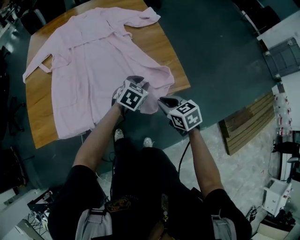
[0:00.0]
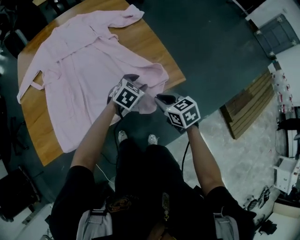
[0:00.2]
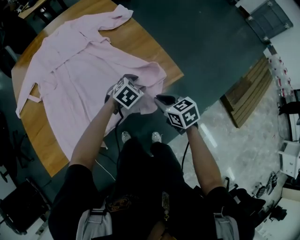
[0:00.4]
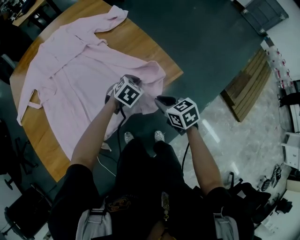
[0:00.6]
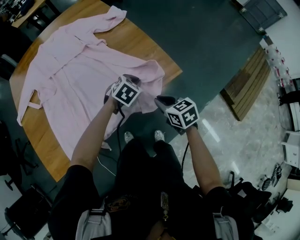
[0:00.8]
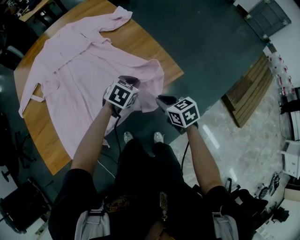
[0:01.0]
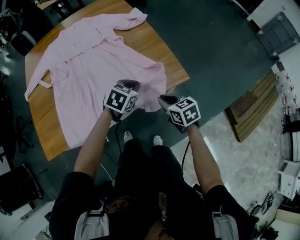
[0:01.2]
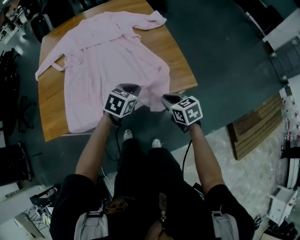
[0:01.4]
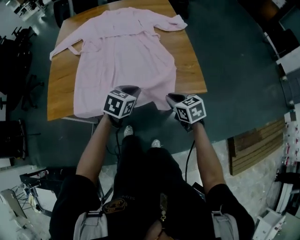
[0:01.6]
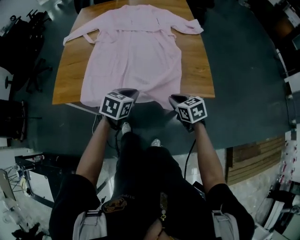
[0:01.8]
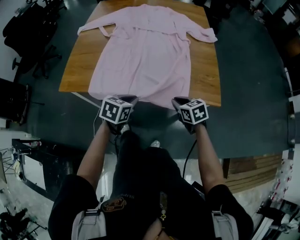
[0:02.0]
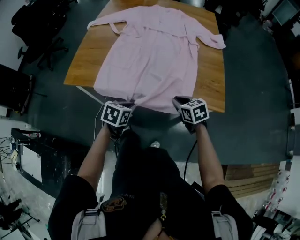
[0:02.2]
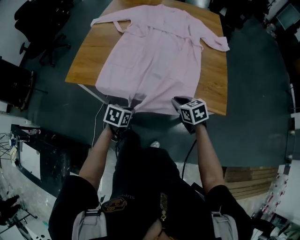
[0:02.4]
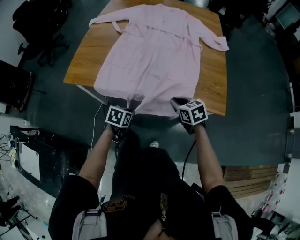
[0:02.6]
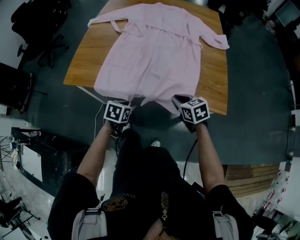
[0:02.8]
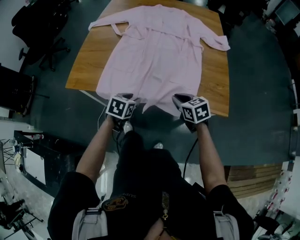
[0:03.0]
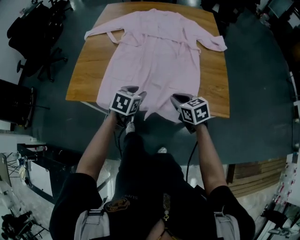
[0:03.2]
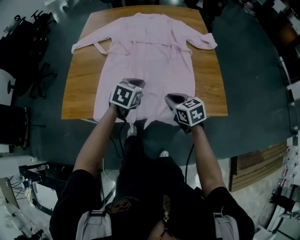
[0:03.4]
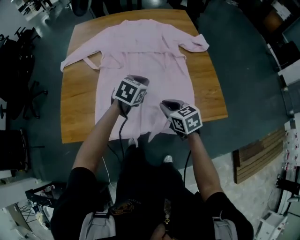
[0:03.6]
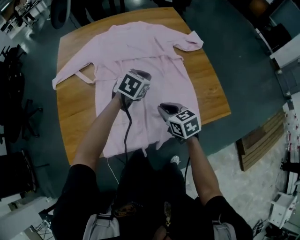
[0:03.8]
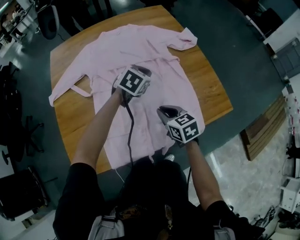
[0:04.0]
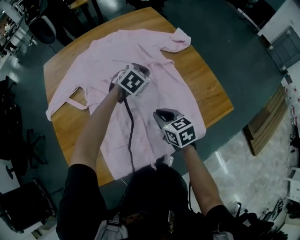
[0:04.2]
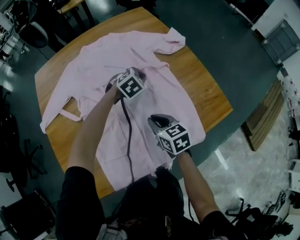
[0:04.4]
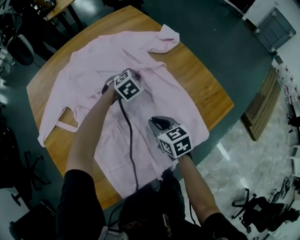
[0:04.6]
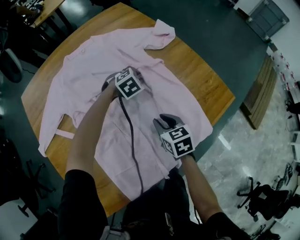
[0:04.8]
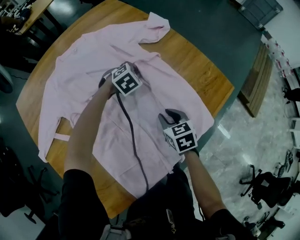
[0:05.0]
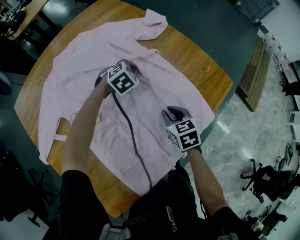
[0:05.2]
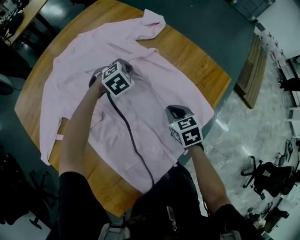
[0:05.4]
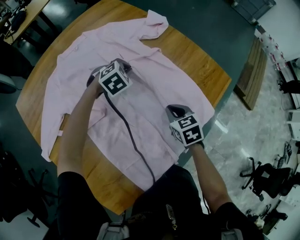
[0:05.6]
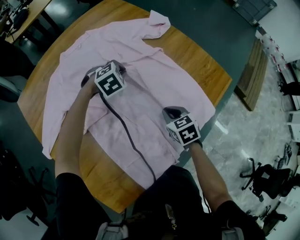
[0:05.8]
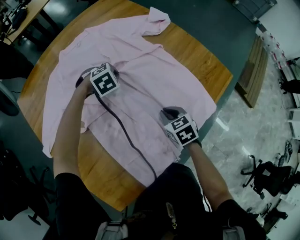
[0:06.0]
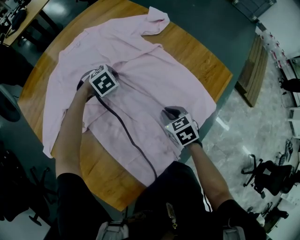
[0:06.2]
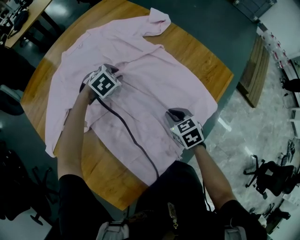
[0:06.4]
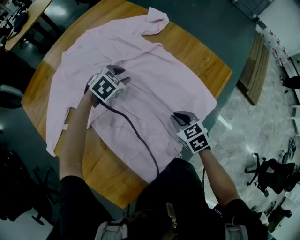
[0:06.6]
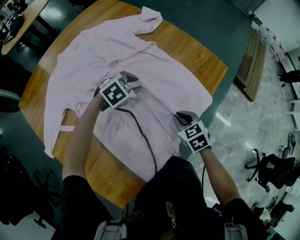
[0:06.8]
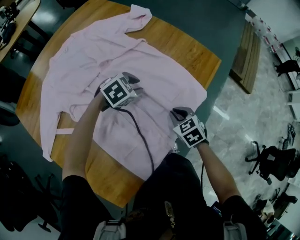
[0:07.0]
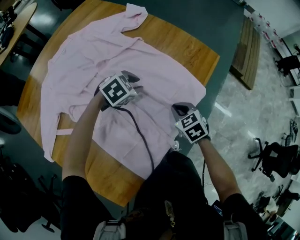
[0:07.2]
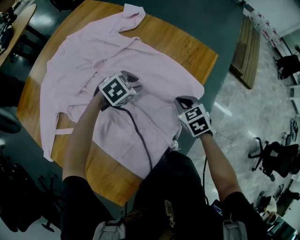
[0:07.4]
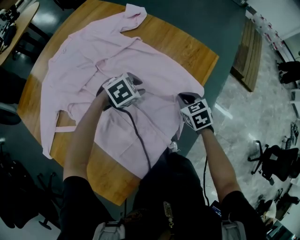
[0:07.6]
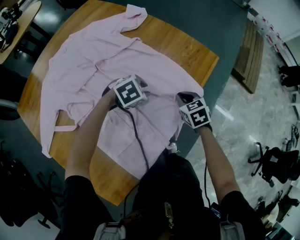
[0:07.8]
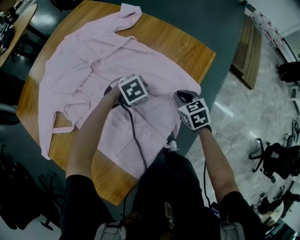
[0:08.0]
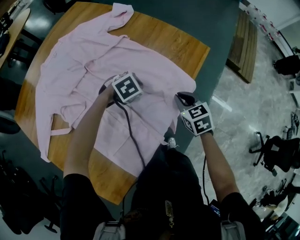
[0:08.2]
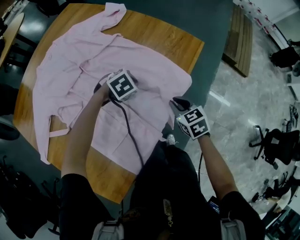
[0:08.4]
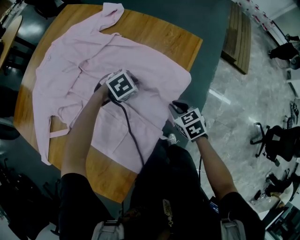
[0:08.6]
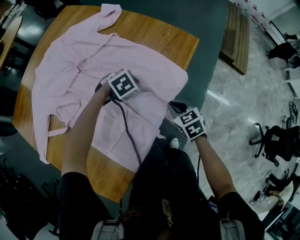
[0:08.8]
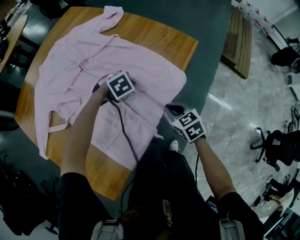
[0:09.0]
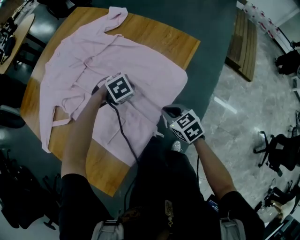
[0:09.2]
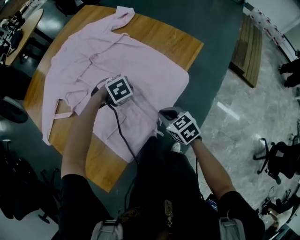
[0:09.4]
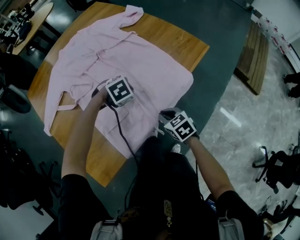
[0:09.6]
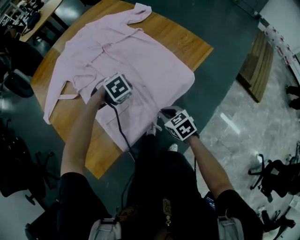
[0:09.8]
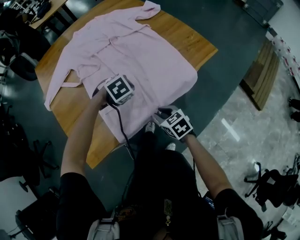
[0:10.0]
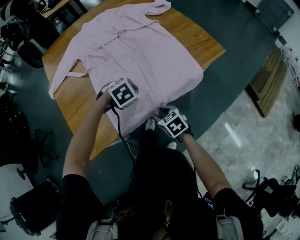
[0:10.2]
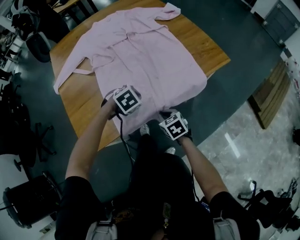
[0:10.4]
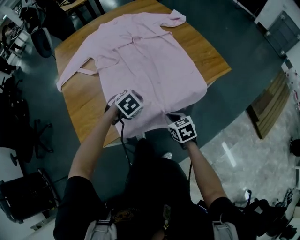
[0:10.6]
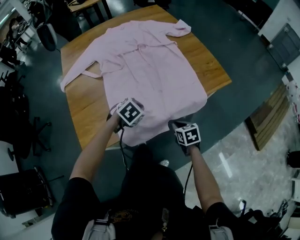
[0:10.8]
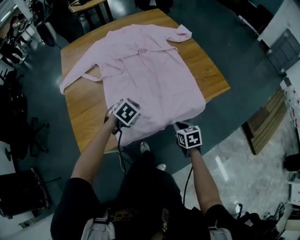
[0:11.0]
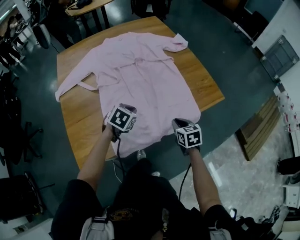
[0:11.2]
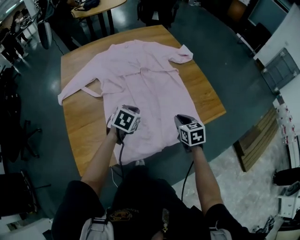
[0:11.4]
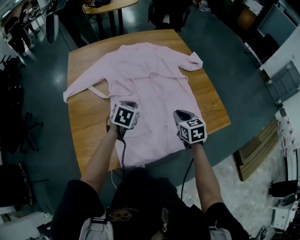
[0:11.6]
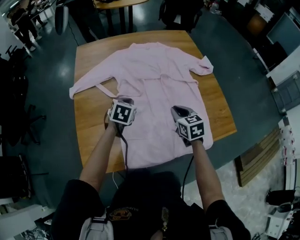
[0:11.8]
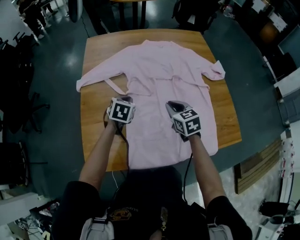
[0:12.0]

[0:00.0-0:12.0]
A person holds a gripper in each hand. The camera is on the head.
0:00.0 to 0:01.6: The left gripper changes place by about 15 cm, and opens, then closes again.
0:01.6 to 0:03.0: The right gripper goes approximately 10 cm to the left. The left gripper goes roughly 20 cm to the left and downward, turns by roughly 20 degrees, and opens up.
0:03.0 to 0:04.4: The right gripper changes place by approximately 20 cm, and turns by about 40 degrees, while the left gripper goes upward and returns, some 10 cm each way, twists about 70 degrees clockwise, seen from behind, and closes.
0:04.4 to 0:06.0: The right gripper heads downward, covering some 5 cm, and swivels roughly 20 degrees, while the left gripper goes about 10 cm to the left, and swivels approximately 30 degrees.
0:06.0 to 0:07.6: The right gripper moves about 15 cm. The left gripper shifts by about 20 cm, turns by roughly 20 degrees, and opens its fingers.
0:07.6 to 0:09.0: The right gripper is displaced backward by some 10 cm; the left gripper travels to the right by some 5 cm, and closes its fingers.
0:09.0 to 0:10.4: The left gripper changes place by approximately 20 cm, and turns by some 30 degrees, while the right gripper shifts by about 15 cm, rotates roughly 30 degrees, and opens, then closes once more.
0:10.4 to 0:12.0: The right gripper ends up approximately 35 cm from where it was, and swivels roughly 20 degrees, while the left gripper ends up roughly 30 cm from where it was, and rolls counterclockwise, seen from behind, by about 50 degrees.

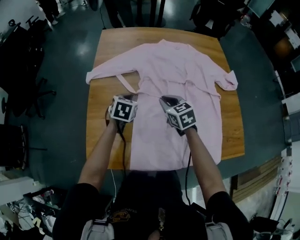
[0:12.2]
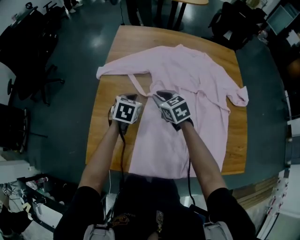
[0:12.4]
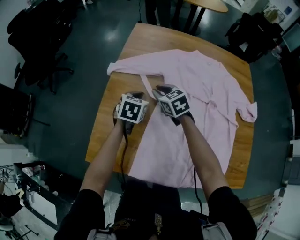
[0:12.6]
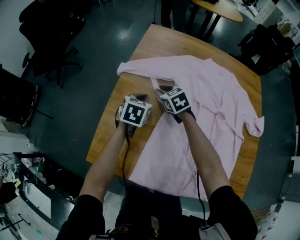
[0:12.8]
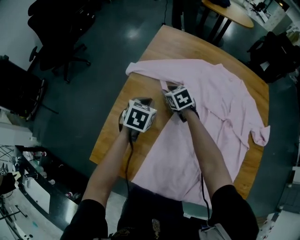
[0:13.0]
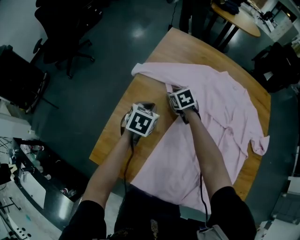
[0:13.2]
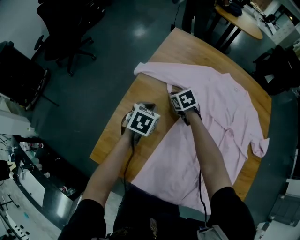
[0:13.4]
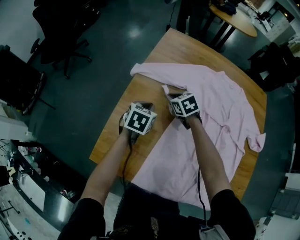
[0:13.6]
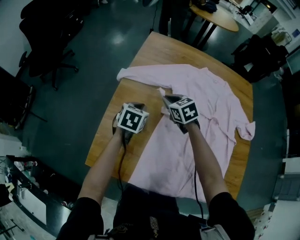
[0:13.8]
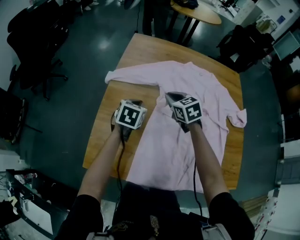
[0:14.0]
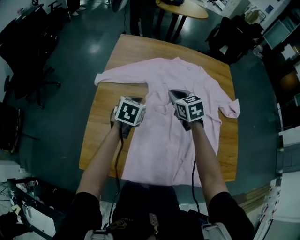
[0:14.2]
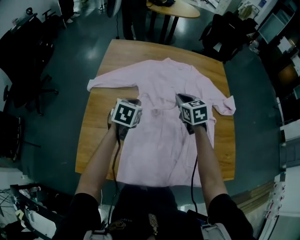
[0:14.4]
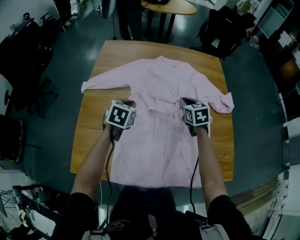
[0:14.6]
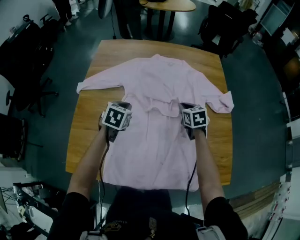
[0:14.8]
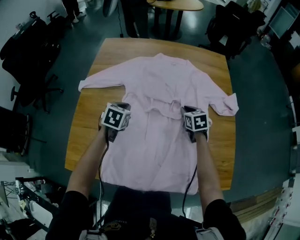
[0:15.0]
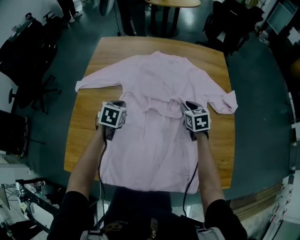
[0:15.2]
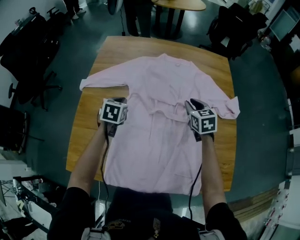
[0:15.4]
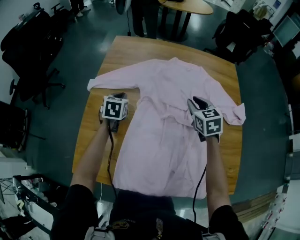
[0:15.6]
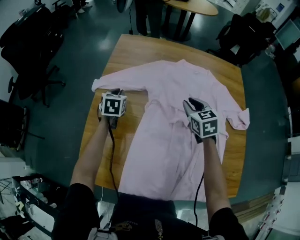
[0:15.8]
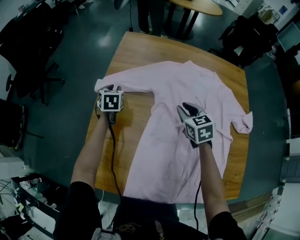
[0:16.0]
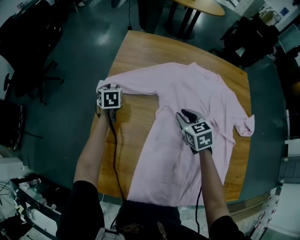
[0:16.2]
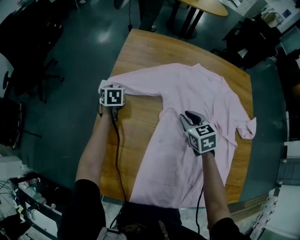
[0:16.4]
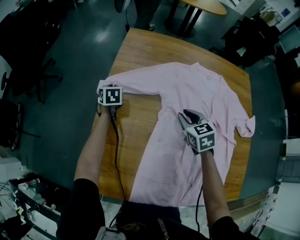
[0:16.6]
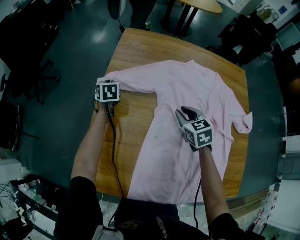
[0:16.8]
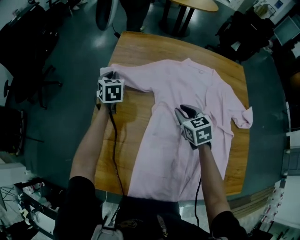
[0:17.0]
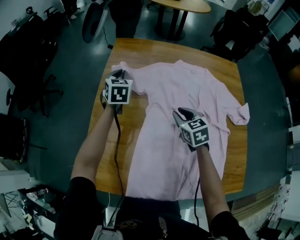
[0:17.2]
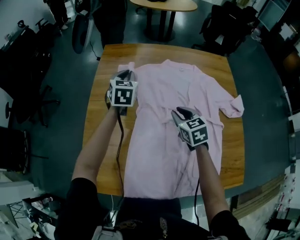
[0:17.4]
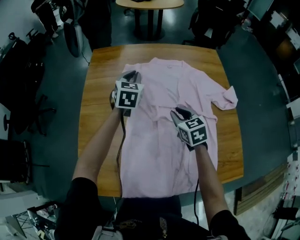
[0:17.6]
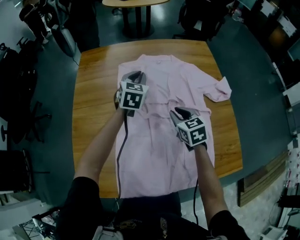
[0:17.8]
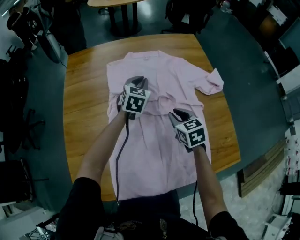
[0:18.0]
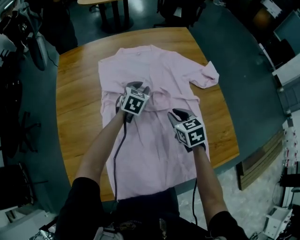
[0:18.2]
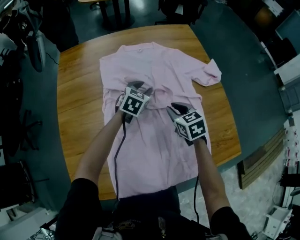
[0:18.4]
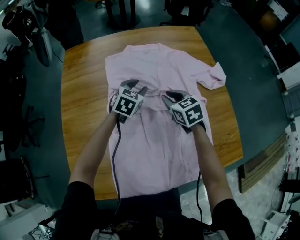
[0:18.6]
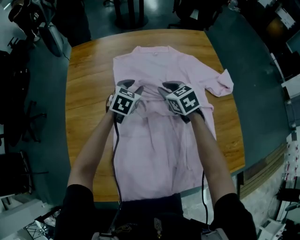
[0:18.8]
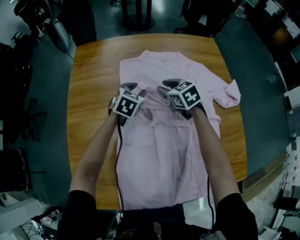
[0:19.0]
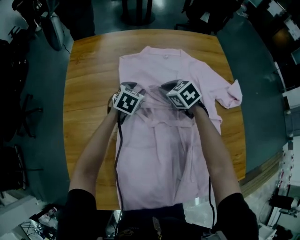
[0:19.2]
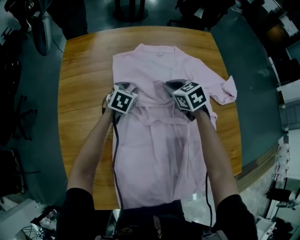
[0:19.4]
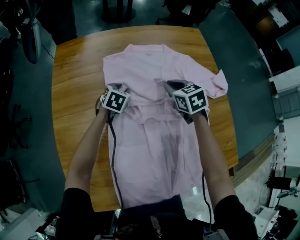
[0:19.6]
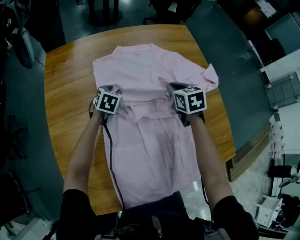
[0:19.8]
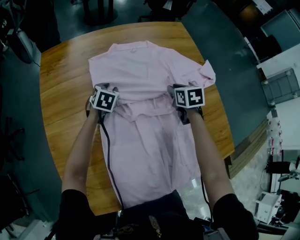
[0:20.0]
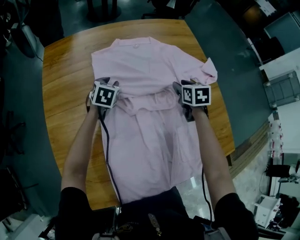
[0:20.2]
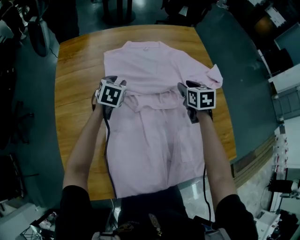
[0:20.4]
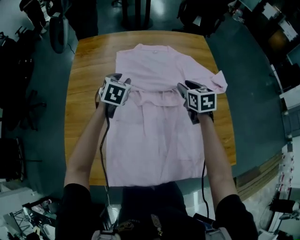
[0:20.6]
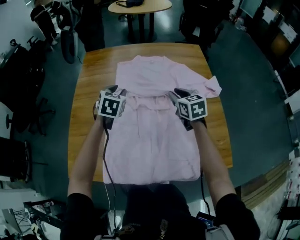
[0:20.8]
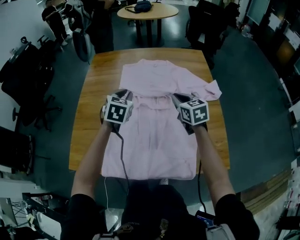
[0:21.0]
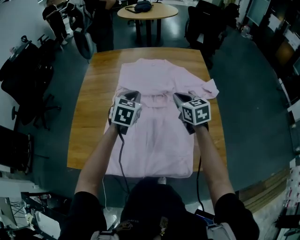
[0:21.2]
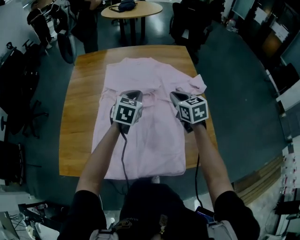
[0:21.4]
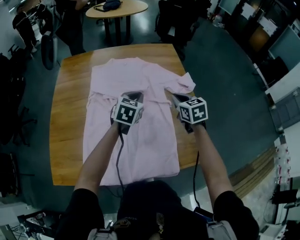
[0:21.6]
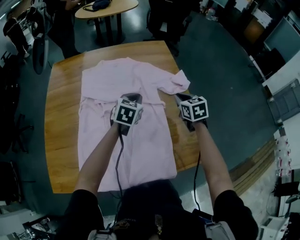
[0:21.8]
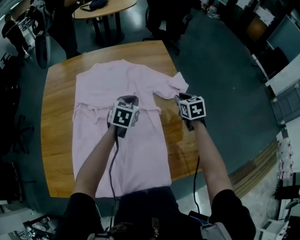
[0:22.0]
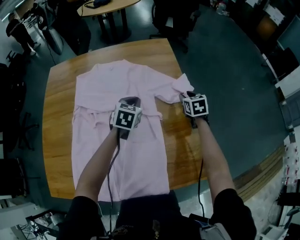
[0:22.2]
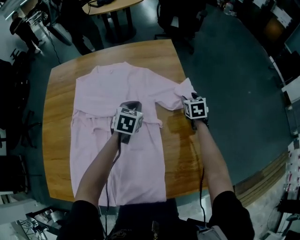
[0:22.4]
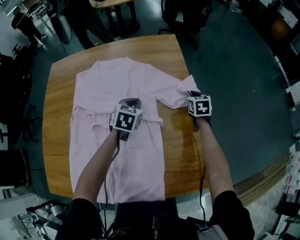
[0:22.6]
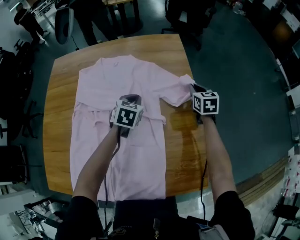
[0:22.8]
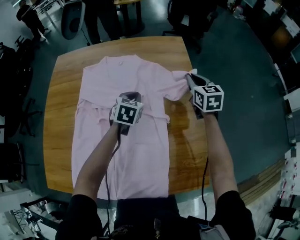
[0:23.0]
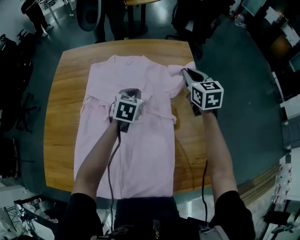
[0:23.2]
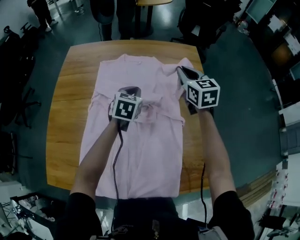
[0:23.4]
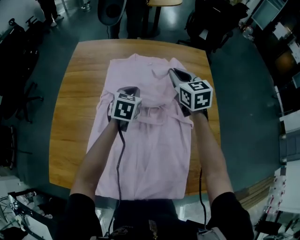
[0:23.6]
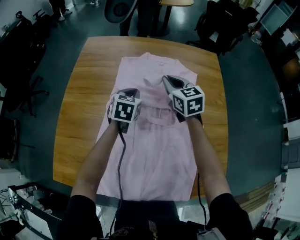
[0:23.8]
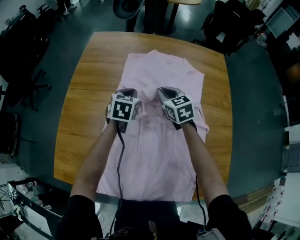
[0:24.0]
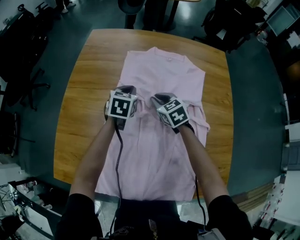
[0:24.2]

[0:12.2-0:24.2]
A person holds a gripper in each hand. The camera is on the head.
0:12.2 to 0:13.8: The right gripper goes approximately 20 cm forward and to the left, turns by approximately 20 degrees, and opens, then closes again; the left gripper travels to the left by approximately 10 cm.
0:13.8 to 0:15.2: The left gripper is displaced to the right by some 20 cm; the right gripper is displaced to the right by roughly 40 cm, and swivels about 30 degrees.
0:15.2 to 0:16.6: The left gripper moves to the left and forward, some 35 cm, swivels roughly 30 degrees, and opens, then closes once more. Meanwhile the right gripper is displaced to the left by about 25 cm.
0:16.6 to 0:18.2: The right gripper ends up approximately 25 cm from where it was, and swivels about 20 degrees. Meanwhile the left gripper reaches some 20 cm upward, then returns, and turns by about 60 degrees.
0:18.2 to 0:19.8: The right gripper heads forward, covering roughly 15 cm. Meanwhile the left gripper heads to the left, downward and forward, covering about 15 cm.
0:19.8 to 0:21.2: The right gripper goes some 20 cm backward and upward, rotates roughly 30 degrees, and opens, then closes once more; the left gripper goes some 35 cm upward, backward and to the right, swivels approximately 20 degrees, and closes its fingers.
0:21.2 to 0:22.6: Both grippers travel together to the right, forward and downward, some 35 cm. The right gripper changes its angle by some 30 degrees, and opens and closes again.
0:22.6 to 0:24.2: The left gripper changes place by some 30 cm. The right gripper travels upward and back again, approximately 20 cm each way, and turns by some 40 degrees.
